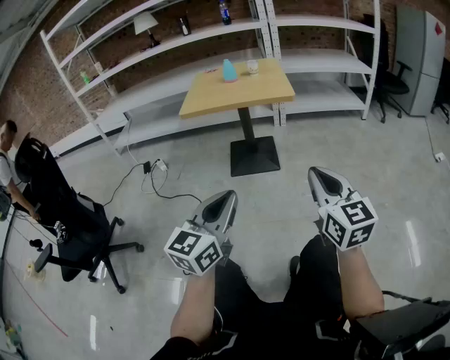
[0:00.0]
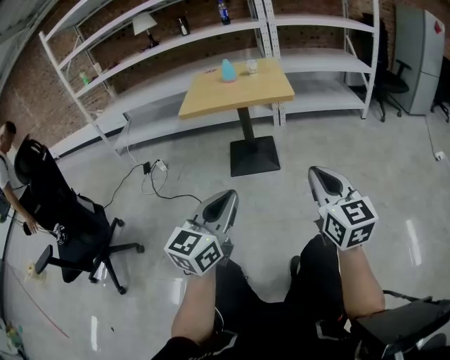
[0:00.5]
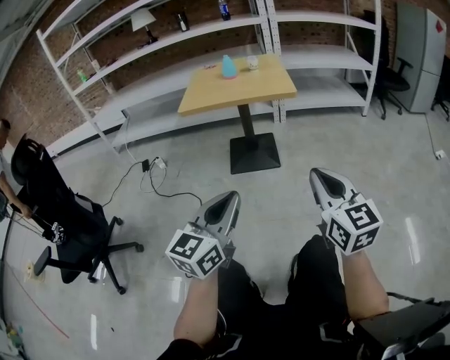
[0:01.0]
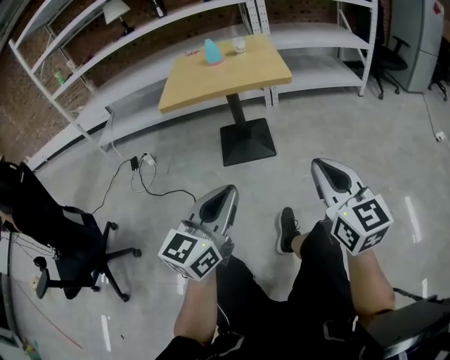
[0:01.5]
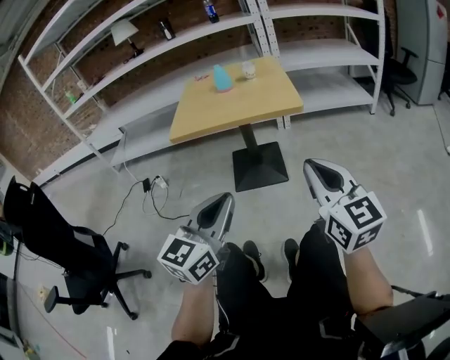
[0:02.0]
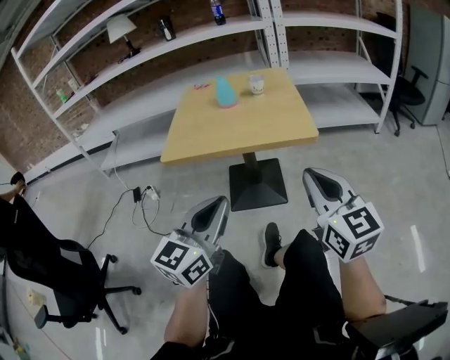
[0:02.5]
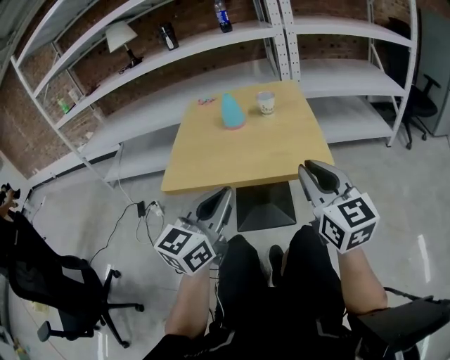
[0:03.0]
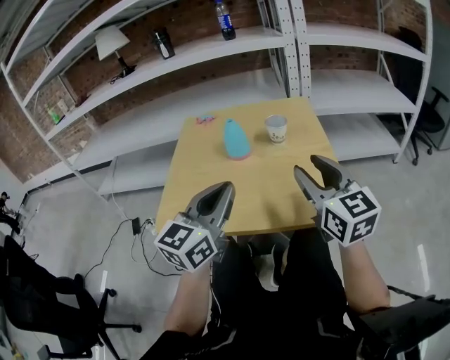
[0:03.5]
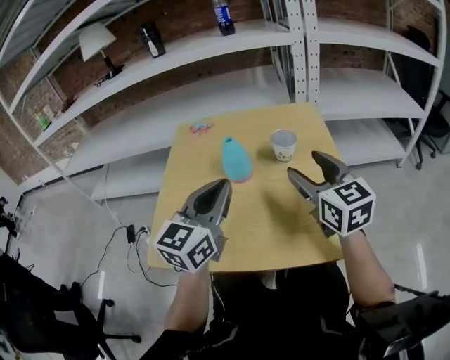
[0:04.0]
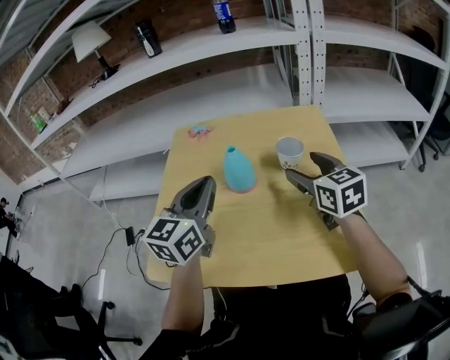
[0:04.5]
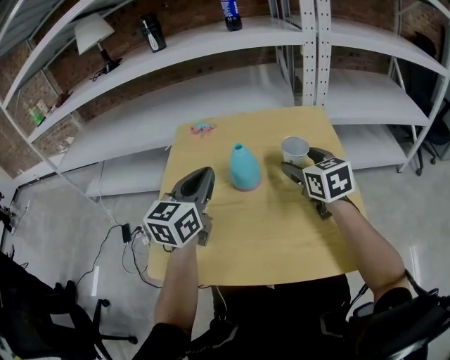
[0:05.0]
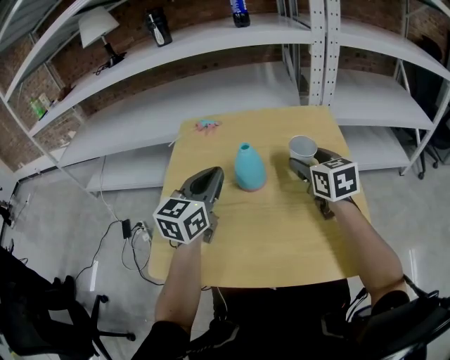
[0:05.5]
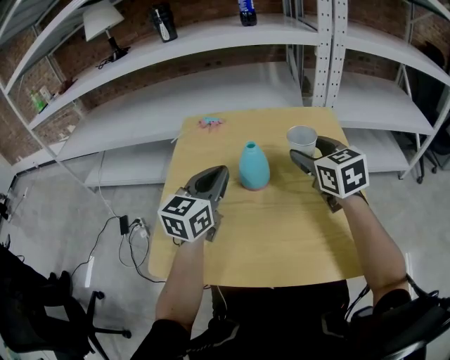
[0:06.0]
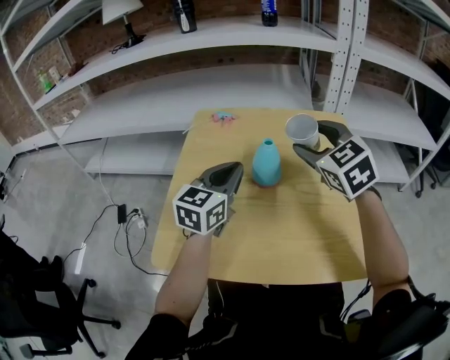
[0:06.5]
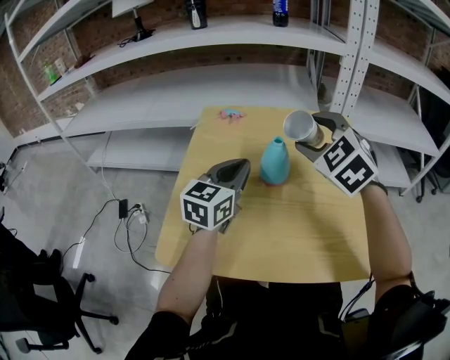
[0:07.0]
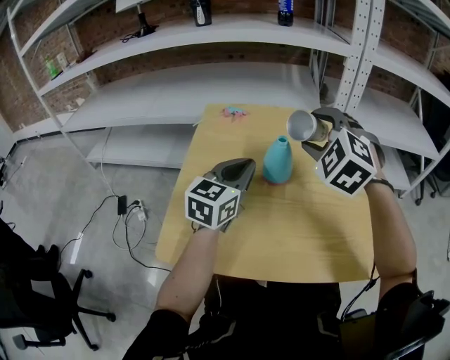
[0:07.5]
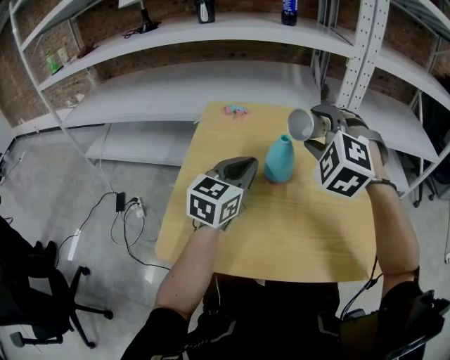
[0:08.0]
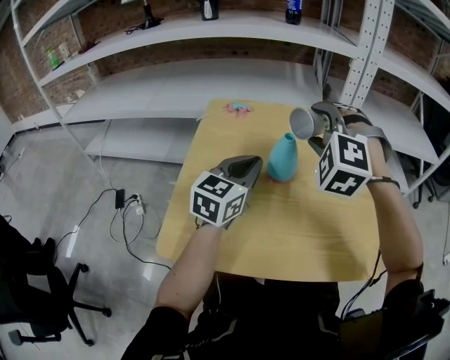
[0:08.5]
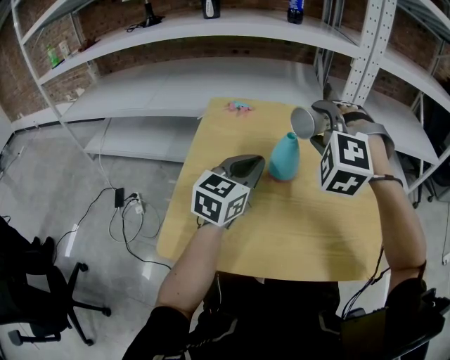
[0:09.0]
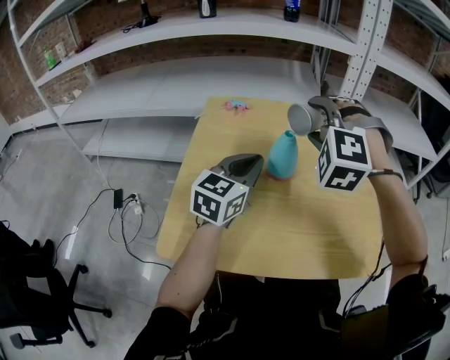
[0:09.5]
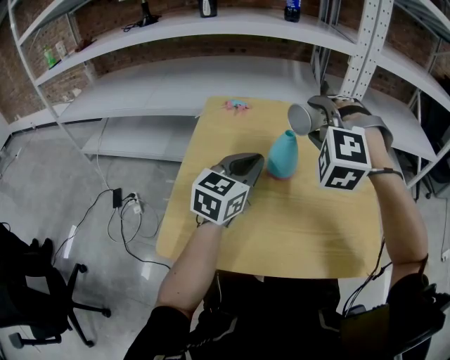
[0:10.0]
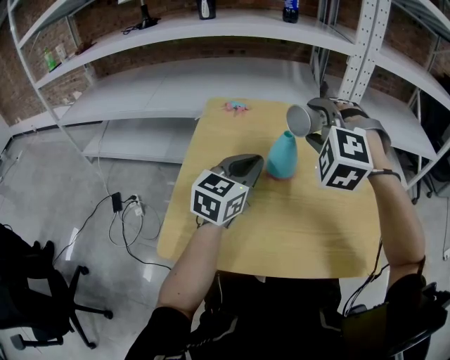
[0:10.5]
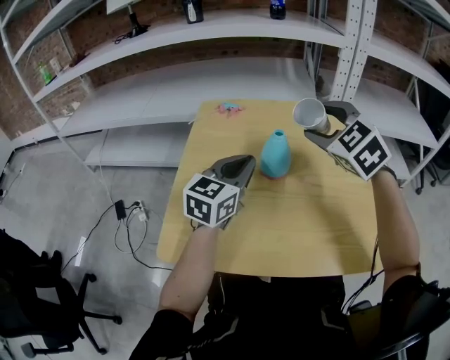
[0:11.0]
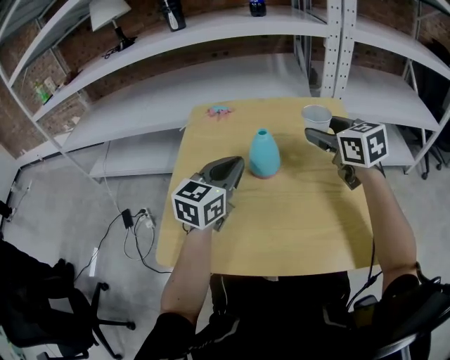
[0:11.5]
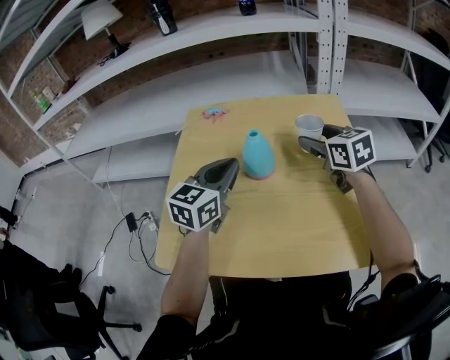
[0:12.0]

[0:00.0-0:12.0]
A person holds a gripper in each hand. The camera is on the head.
0:00.0 to 0:02.0: The grippers both shift forward by about 15 cm.
0:02.0 to 0:04.0: The pair of grippers is taken forward, some 60 cm. The right gripper opens.
0:04.0 to 0:06.0: The left gripper goes roughly 15 cm forward, to the left and downward. Meanwhile the right gripper moves forward, roughly 10 cm.
0:06.0 to 0:08.0: The right gripper is displaced to the left and upward by about 10 cm, and rotates around the line of its fingers by roughly 70 degrees, counterclockwise from behind.
0:08.0 to 0:10.0: The grippers move only a little.
0:10.0 to 0:12.0: The right gripper shifts some 15 cm to the right, downward and forward, and rolls clockwise, seen from behind, by about 90 degrees.

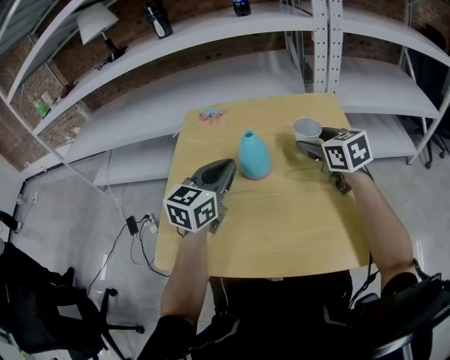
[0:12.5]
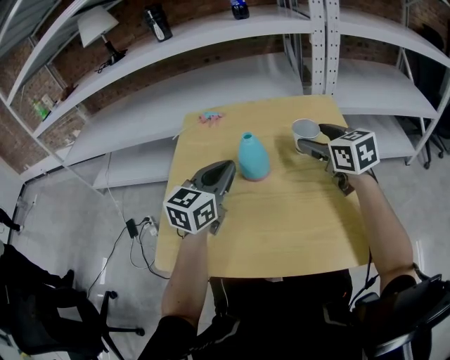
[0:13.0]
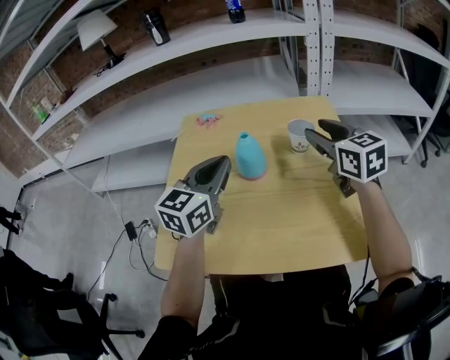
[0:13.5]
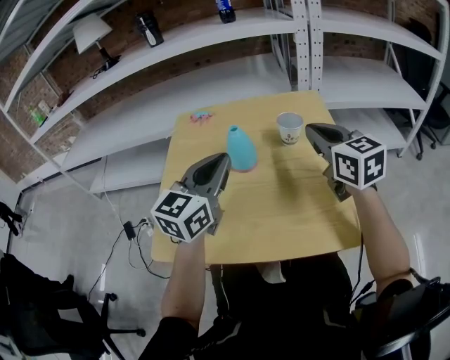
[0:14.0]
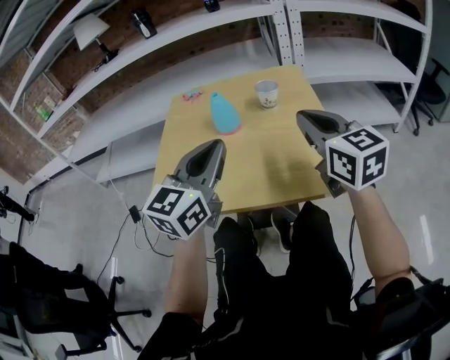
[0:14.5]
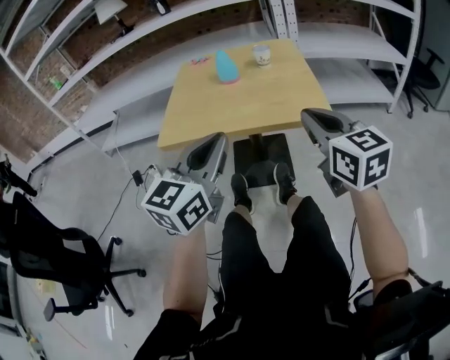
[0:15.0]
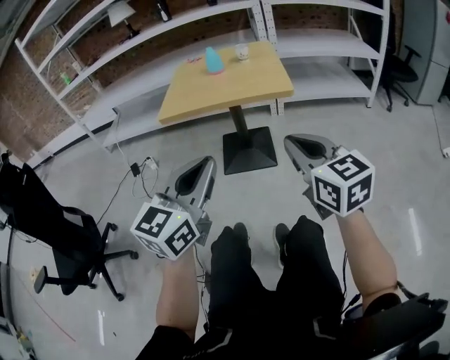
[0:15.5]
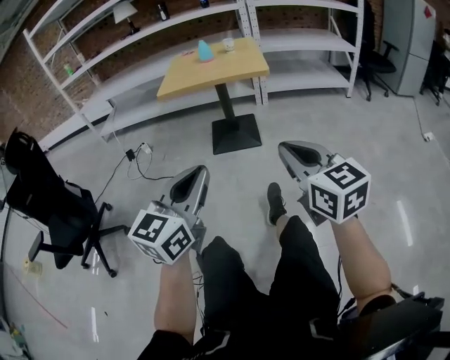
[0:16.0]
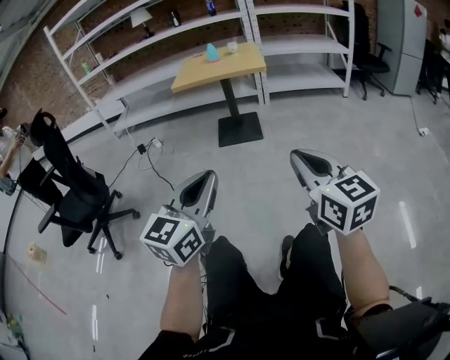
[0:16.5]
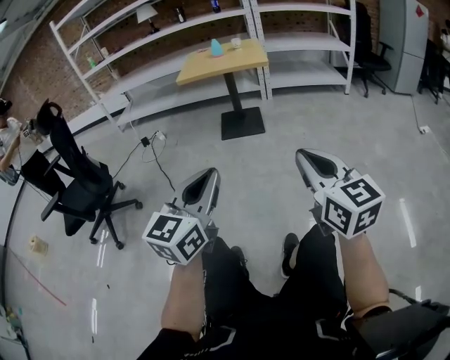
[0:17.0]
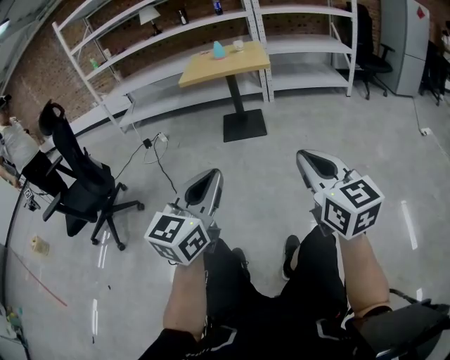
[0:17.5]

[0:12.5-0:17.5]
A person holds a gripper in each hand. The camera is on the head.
0:12.5 to 0:15.0: The two grippers travel together, backward, roughly 40 cm. The right gripper closes up.
0:15.0 to 0:17.5: The pair of grippers is taken backward, about 70 cm.

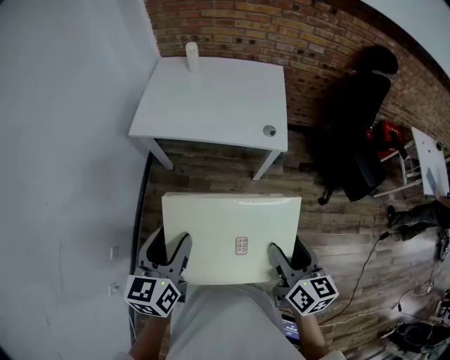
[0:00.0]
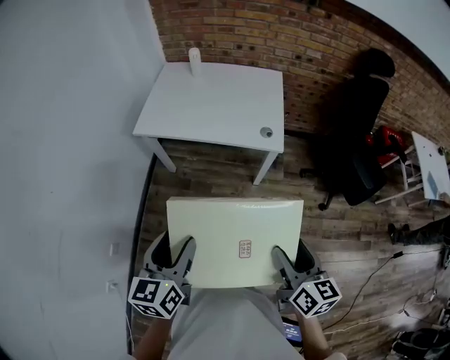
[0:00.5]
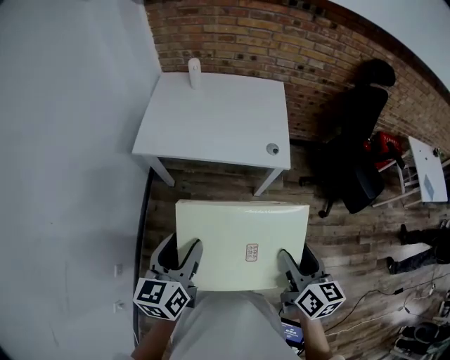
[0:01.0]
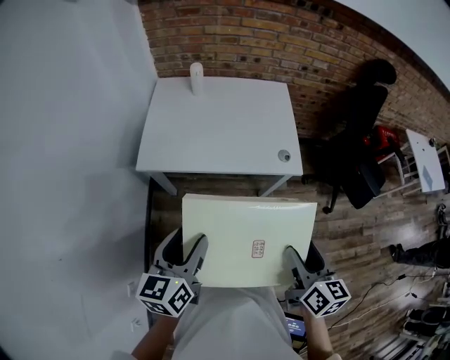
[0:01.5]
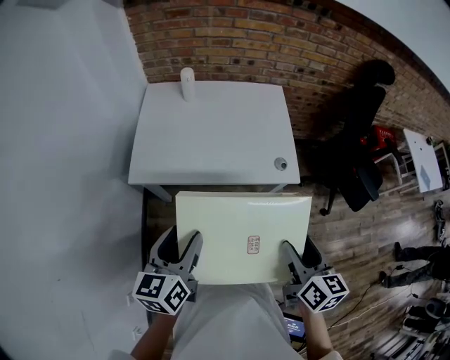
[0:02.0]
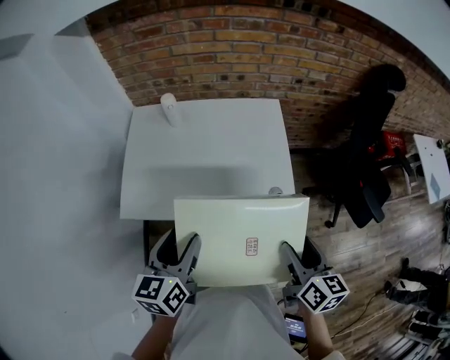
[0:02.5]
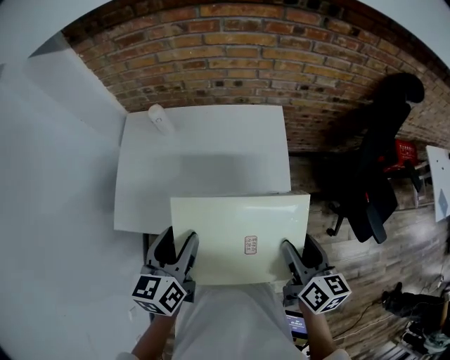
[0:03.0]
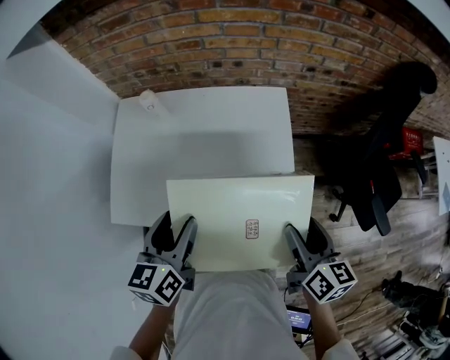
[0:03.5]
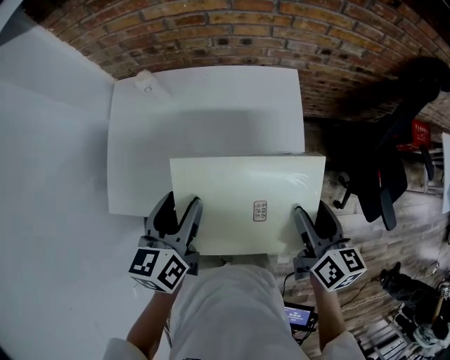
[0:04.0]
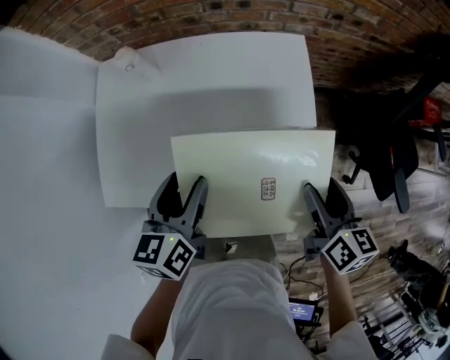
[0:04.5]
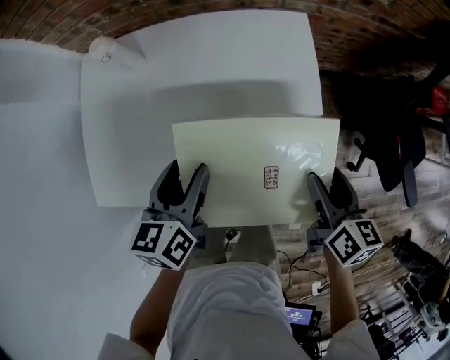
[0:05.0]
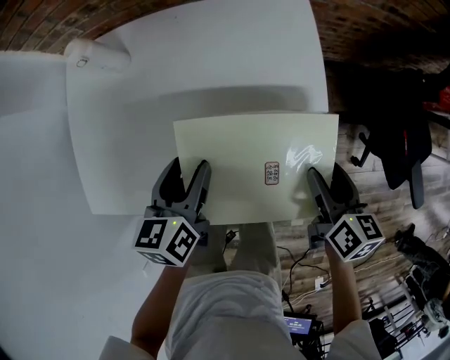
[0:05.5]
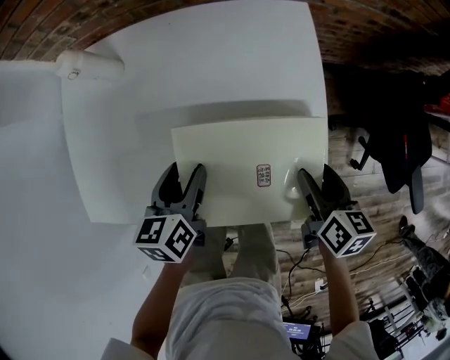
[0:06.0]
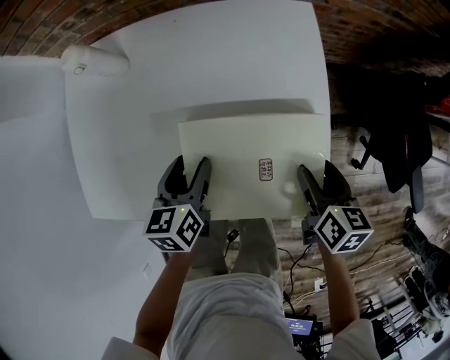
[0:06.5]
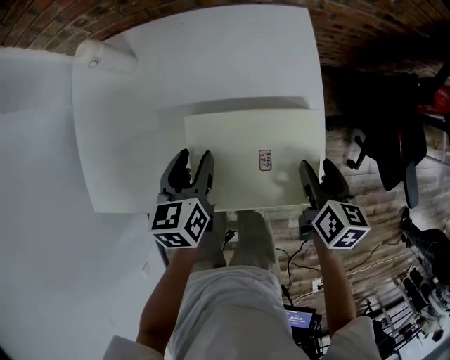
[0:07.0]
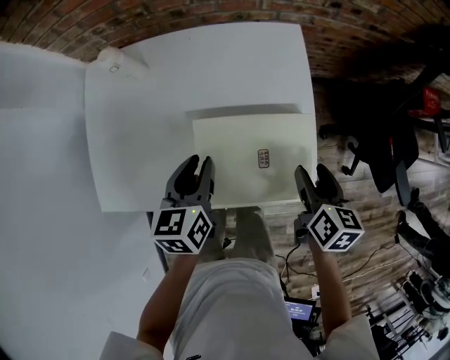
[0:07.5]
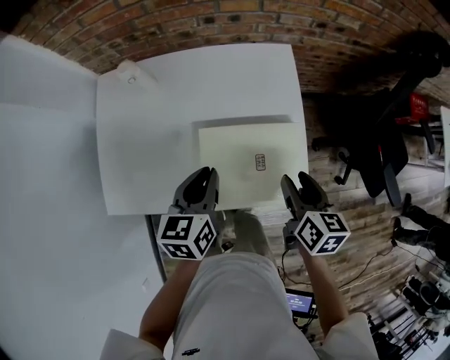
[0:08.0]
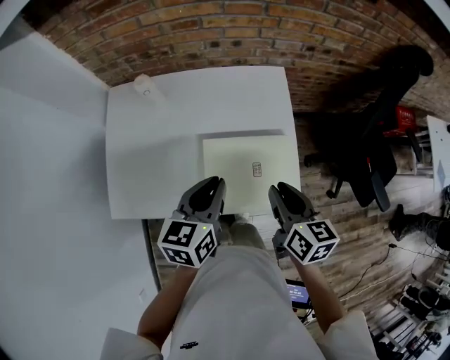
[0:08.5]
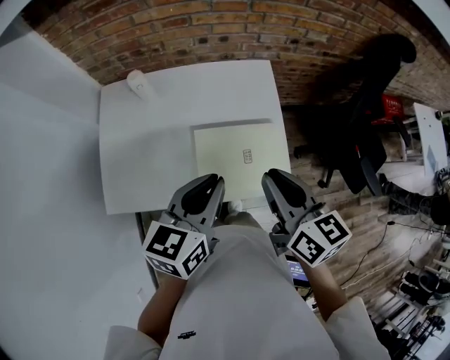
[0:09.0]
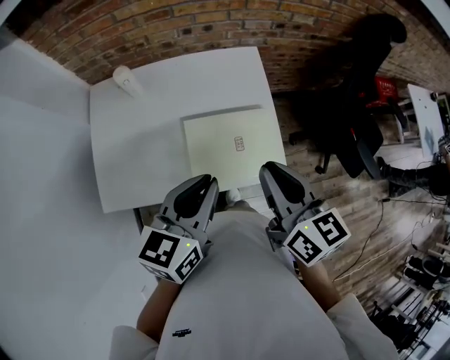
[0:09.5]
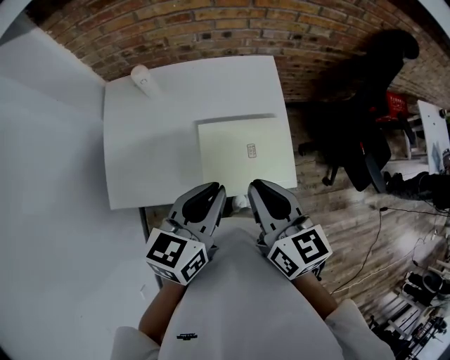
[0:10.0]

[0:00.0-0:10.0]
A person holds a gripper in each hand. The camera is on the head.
0:00.0 to 0:02.0: Both grippers move forward and to the left, about 25 cm.
0:02.0 to 0:04.0: Both grippers are carried forward, approximately 40 cm.
0:04.0 to 0:06.0: The two grippers go roughly 25 cm downward.
0:06.0 to 0:08.0: Both grippers move upward, roughly 15 cm. The left gripper closes its fingers.
0:08.0 to 0:10.0: The left gripper is displaced upward and backward by about 20 cm. The right gripper moves upward, to the left and backward, roughly 25 cm, rotates some 20 degrees, and closes.
